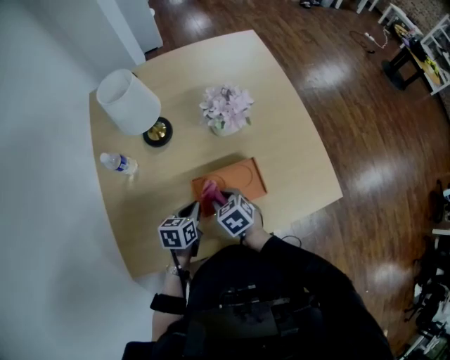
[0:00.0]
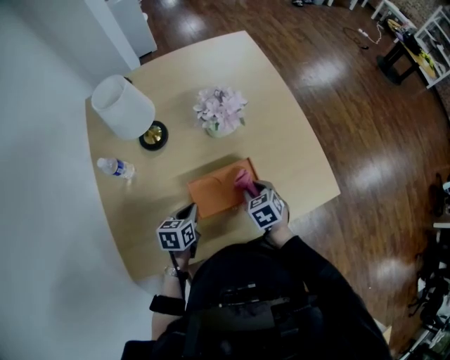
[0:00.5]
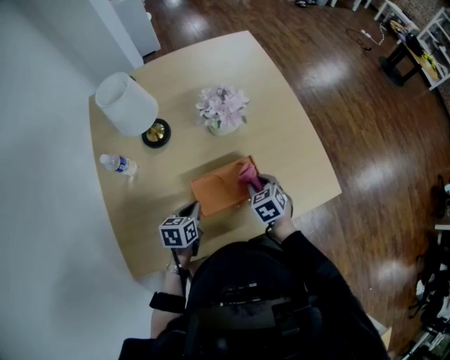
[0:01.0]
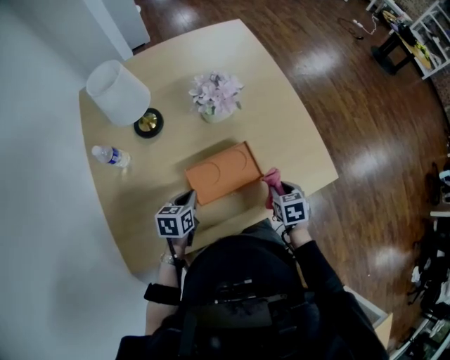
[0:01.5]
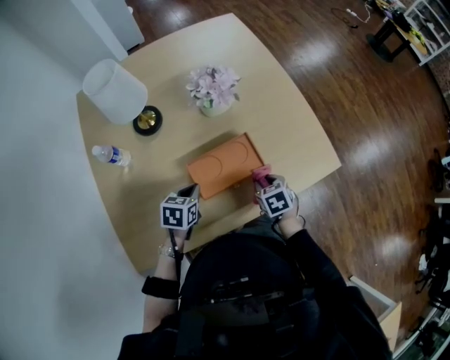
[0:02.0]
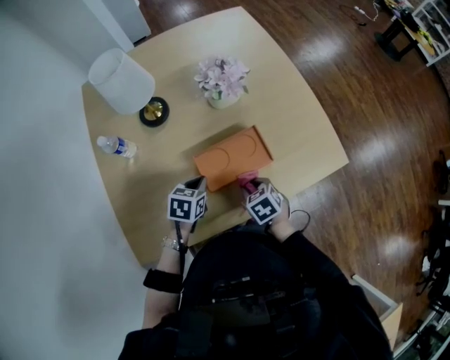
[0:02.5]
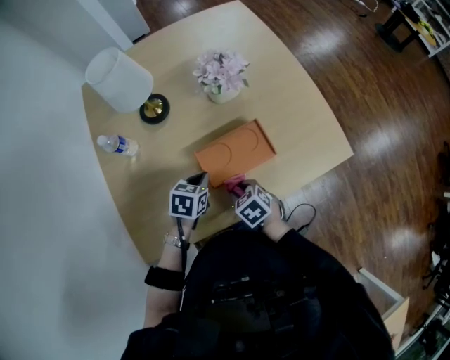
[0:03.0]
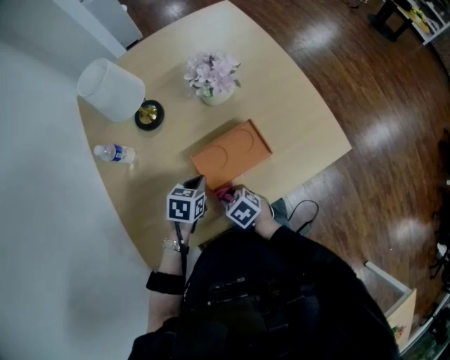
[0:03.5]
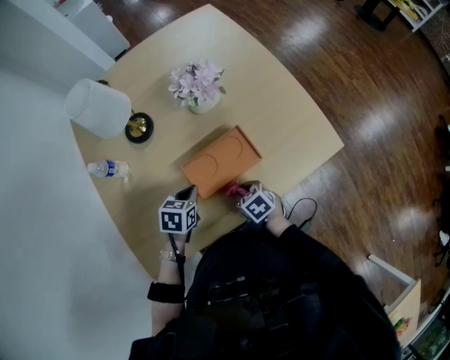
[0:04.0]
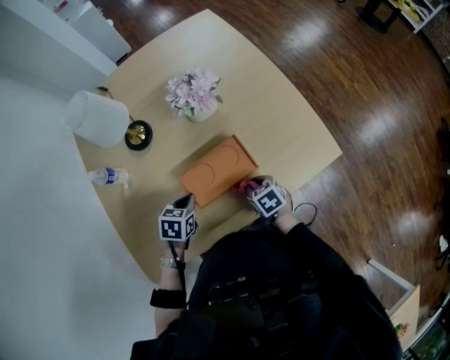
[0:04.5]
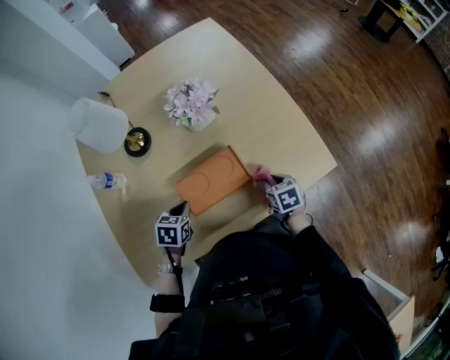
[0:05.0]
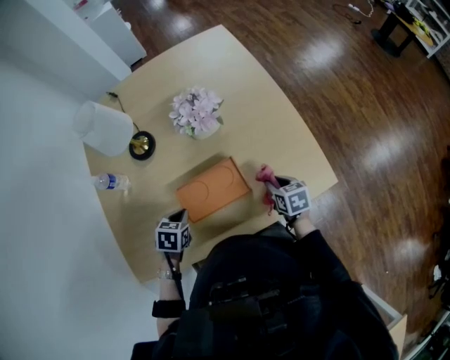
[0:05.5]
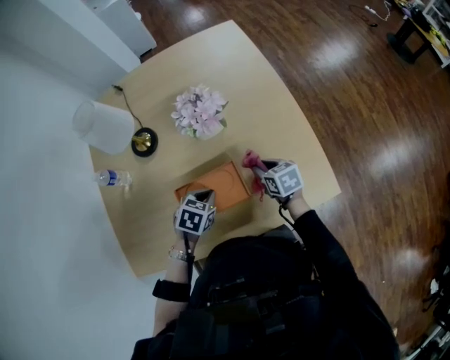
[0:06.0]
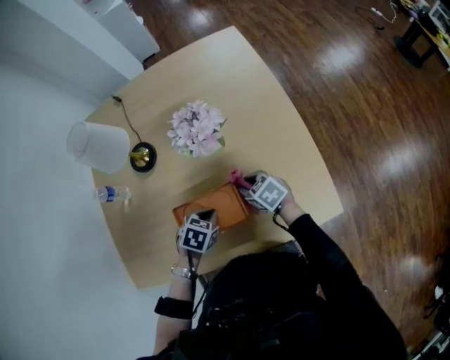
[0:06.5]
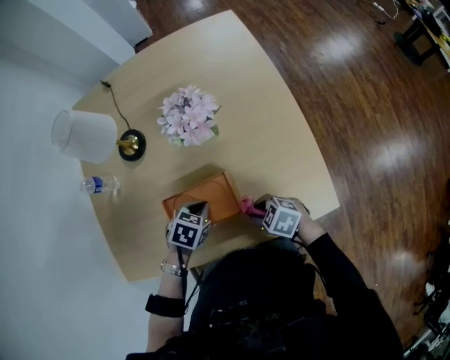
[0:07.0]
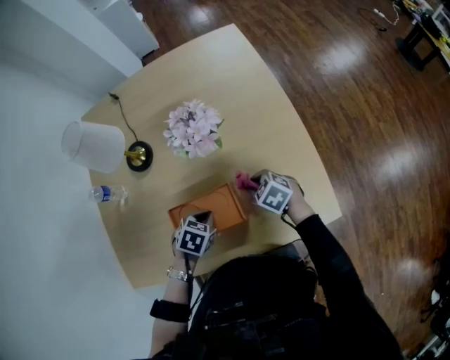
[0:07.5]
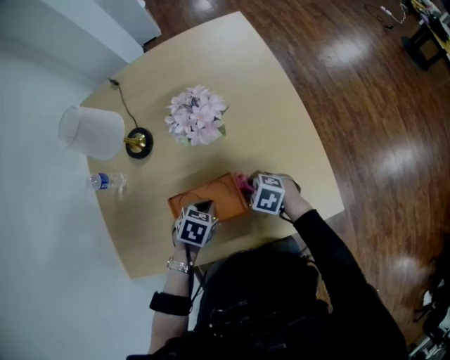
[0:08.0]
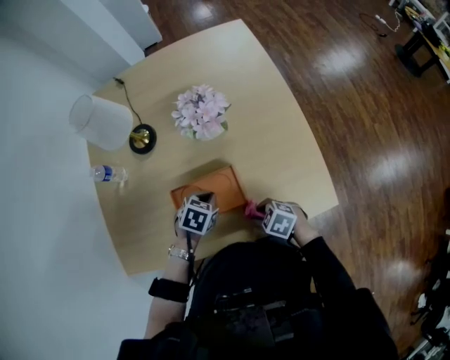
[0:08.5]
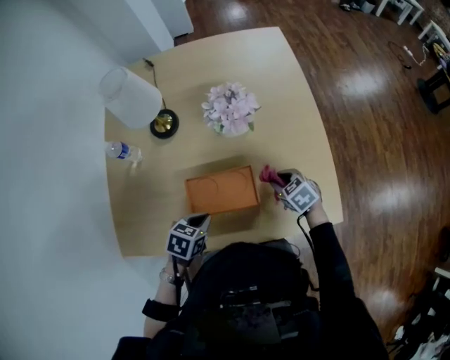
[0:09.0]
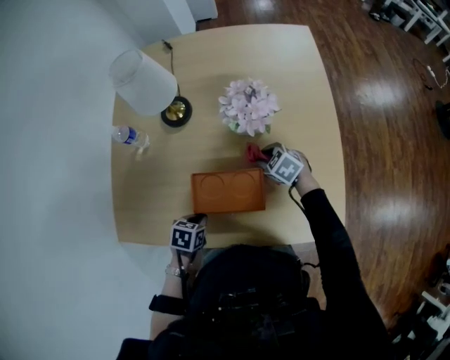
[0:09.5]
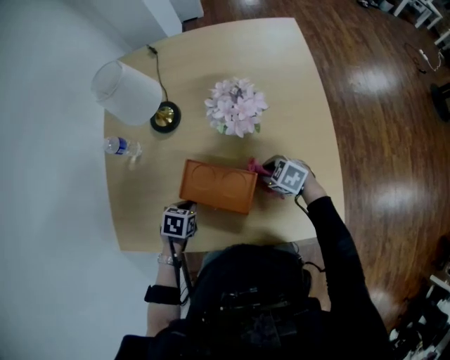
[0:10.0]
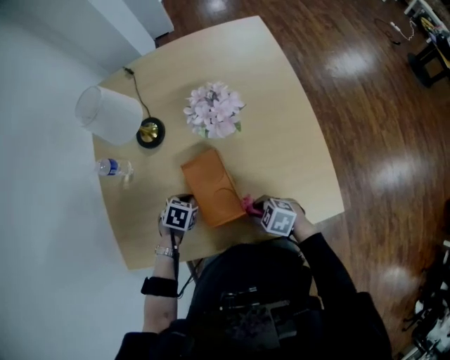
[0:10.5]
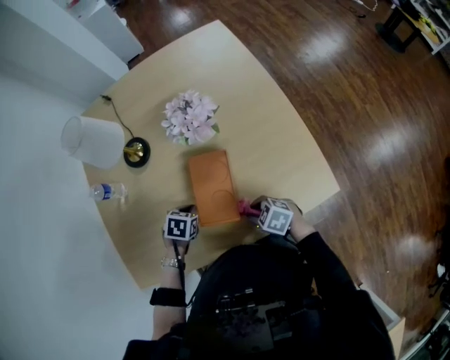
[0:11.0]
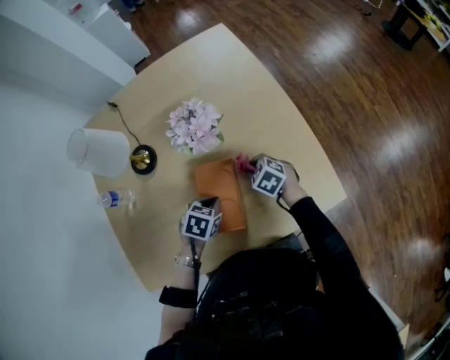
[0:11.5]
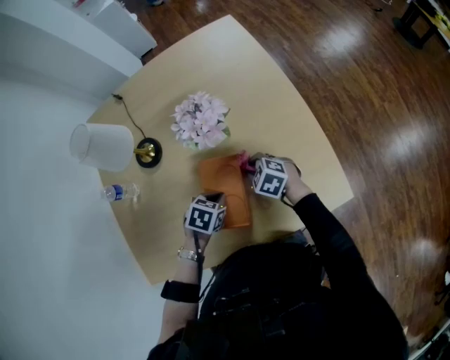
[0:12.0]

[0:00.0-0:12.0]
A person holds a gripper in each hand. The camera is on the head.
0:00.0 to 0:02.0: The right gripper travels to the right by some 15 cm, and turns by some 20 degrees.
0:02.0 to 0:04.0: The right gripper moves to the left, some 10 cm.
0:04.0 to 0:06.0: The right gripper shifts roughly 25 cm forward and to the right; the left gripper shifts some 15 cm to the right and forward.
0:06.0 to 0:08.0: The right gripper twists some 40 degrees counterclockwise, seen from behind.
0:08.0 to 0:10.0: The left gripper ends up some 15 cm from where it was, and rotates roughly 20 degrees.
0:10.0 to 0:12.0: The left gripper changes place by about 15 cm, and swivels about 30 degrees.

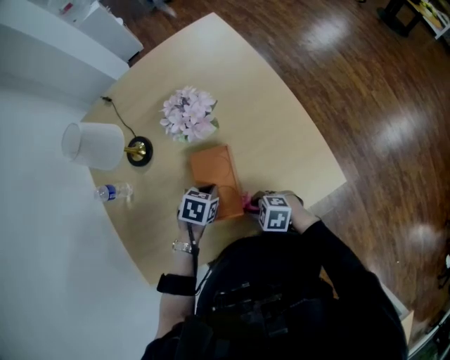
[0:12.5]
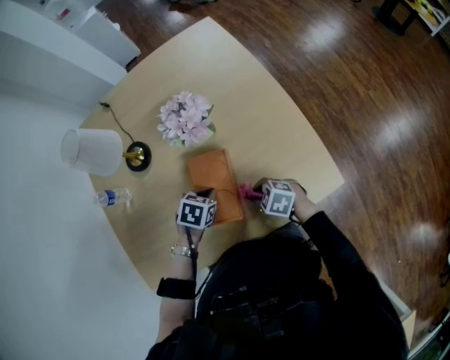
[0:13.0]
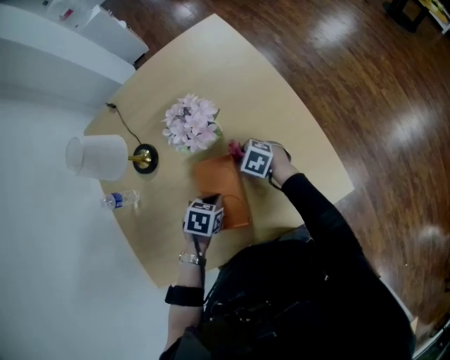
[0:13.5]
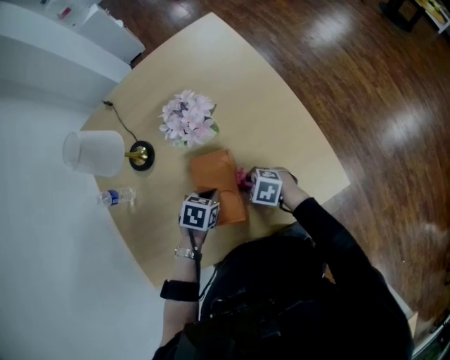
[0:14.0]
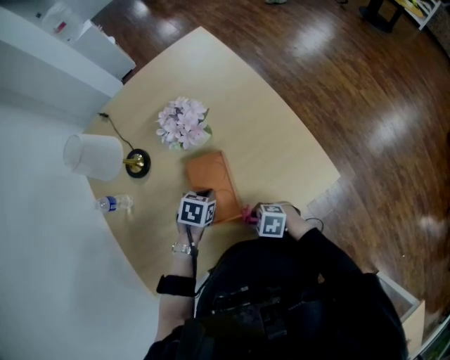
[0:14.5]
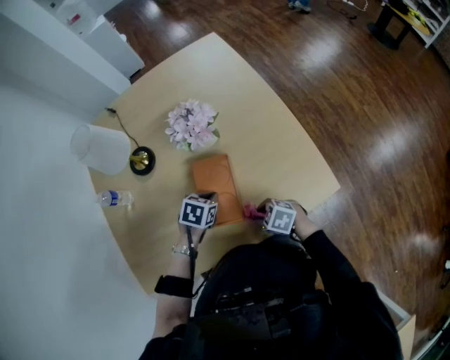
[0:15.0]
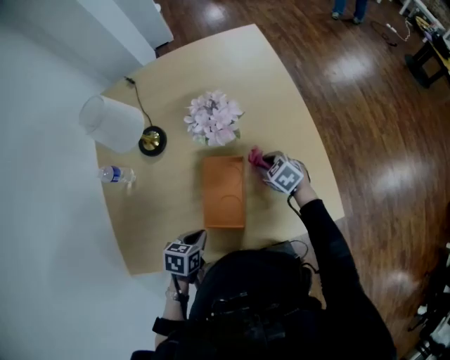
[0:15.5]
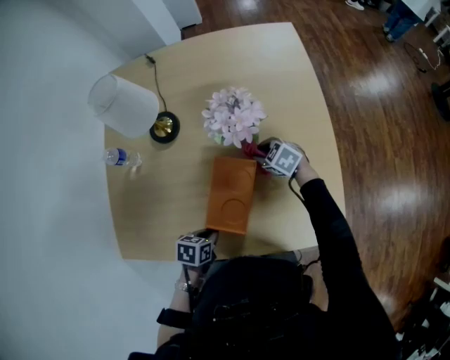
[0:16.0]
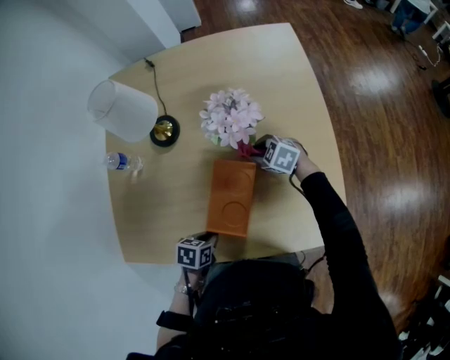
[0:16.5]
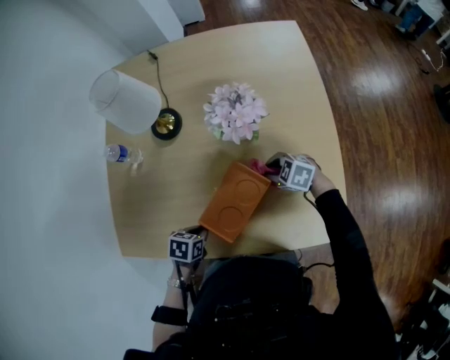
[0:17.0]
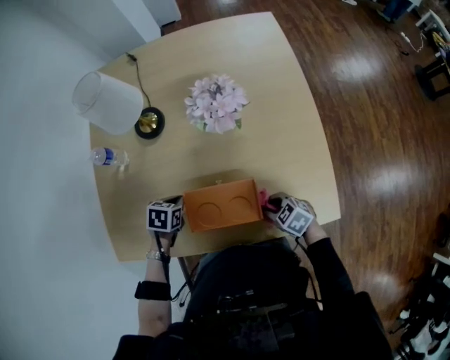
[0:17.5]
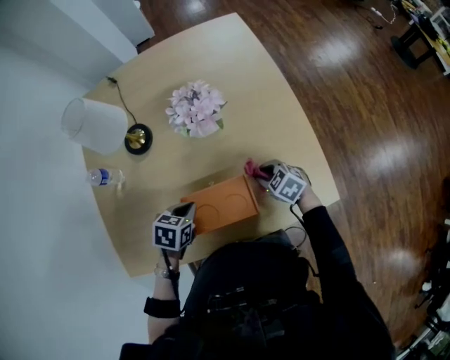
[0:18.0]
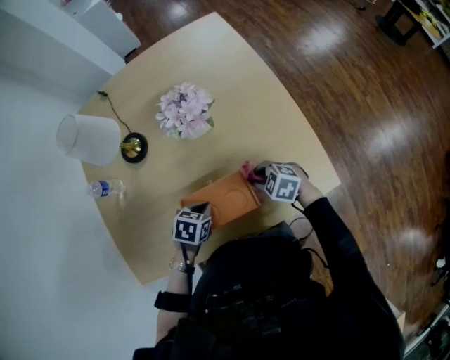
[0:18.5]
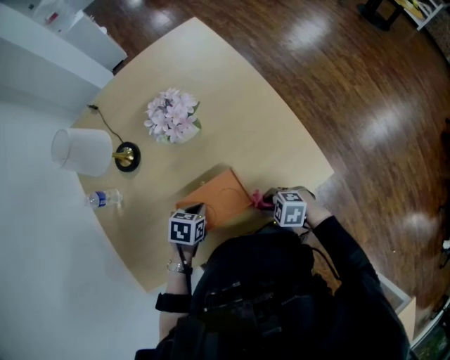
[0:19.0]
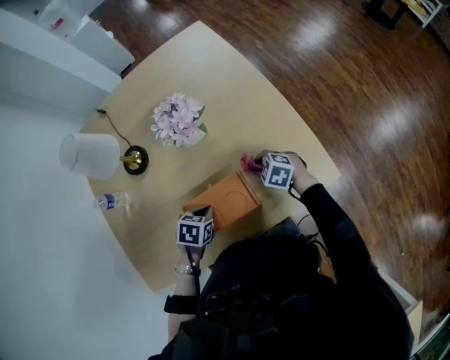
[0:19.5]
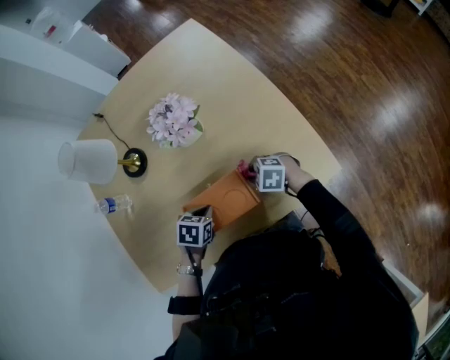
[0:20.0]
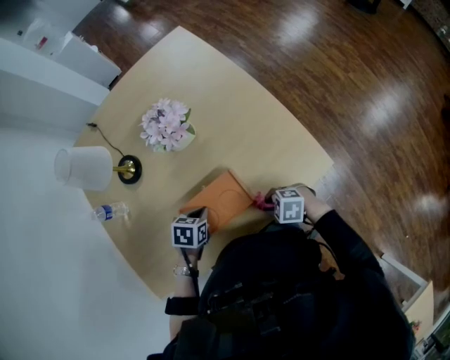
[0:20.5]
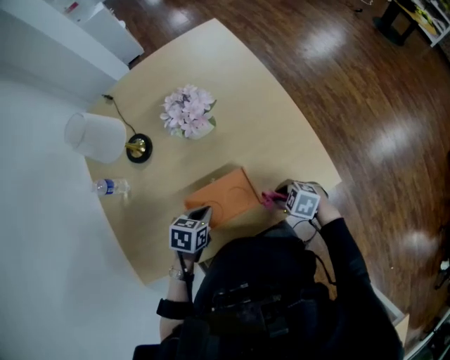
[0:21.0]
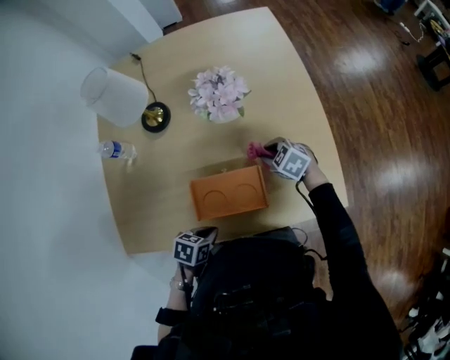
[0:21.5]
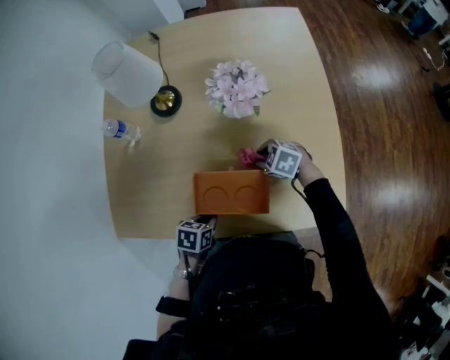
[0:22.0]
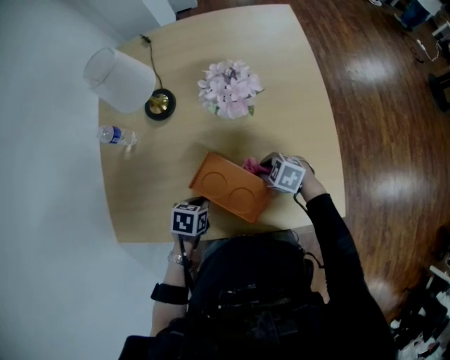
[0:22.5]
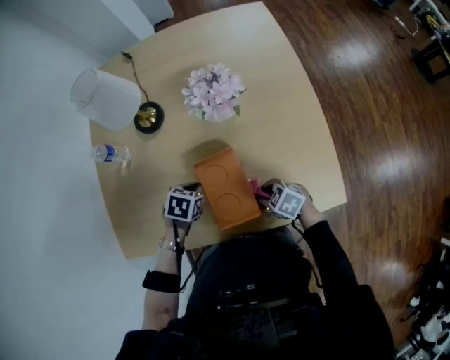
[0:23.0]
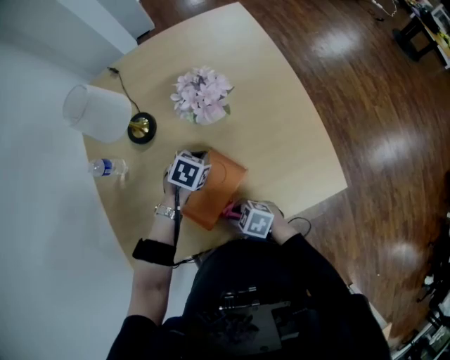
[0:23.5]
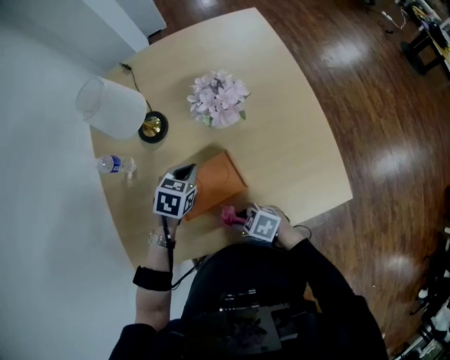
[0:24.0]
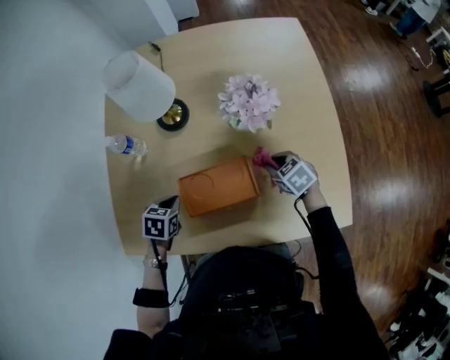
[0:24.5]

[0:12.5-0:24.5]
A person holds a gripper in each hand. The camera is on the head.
0:14.5 to 0:16.5: The left gripper ends up roughly 15 cm from where it was, and swivels about 40 degrees; the right gripper changes place by about 30 cm, and swivels approximately 20 degrees.
0:16.5 to 0:18.5: The right gripper changes place by roughly 20 cm. The left gripper changes its angle by some 30 degrees.
0:18.5 to 0:20.5: The right gripper shifts by some 15 cm.
0:20.5 to 0:22.5: The left gripper turns by approximately 30 degrees; the right gripper moves about 15 cm.
0:22.5 to 0:24.5: The left gripper moves some 10 cm upward and comes back; the right gripper swivels about 20 degrees.

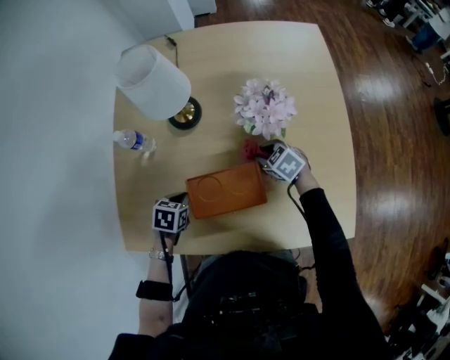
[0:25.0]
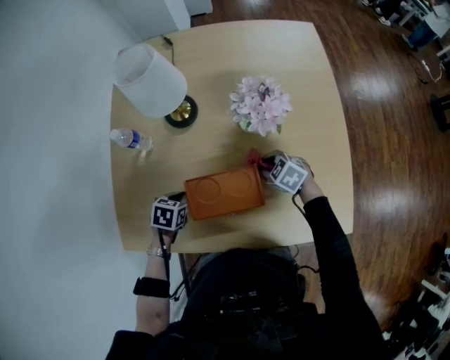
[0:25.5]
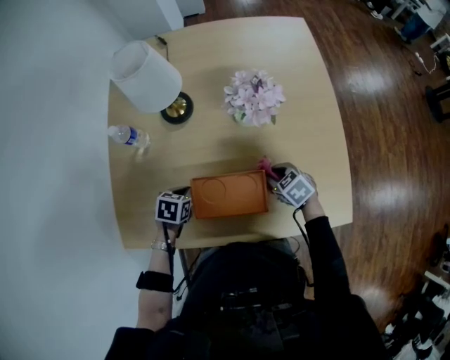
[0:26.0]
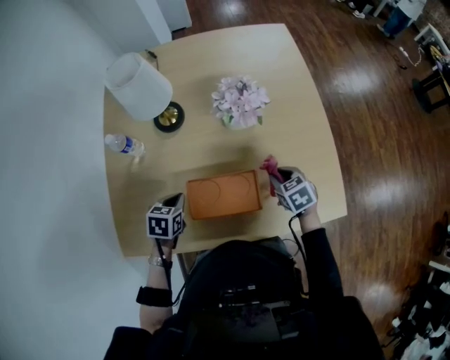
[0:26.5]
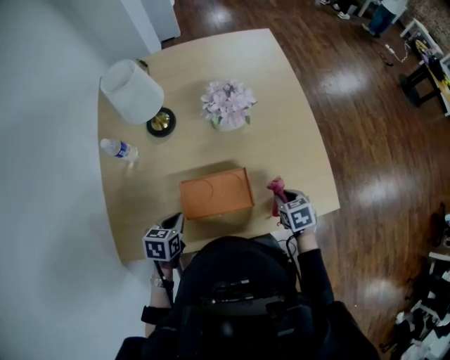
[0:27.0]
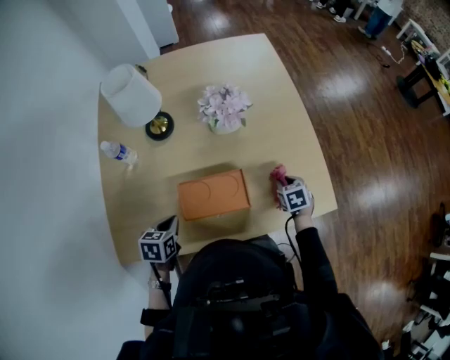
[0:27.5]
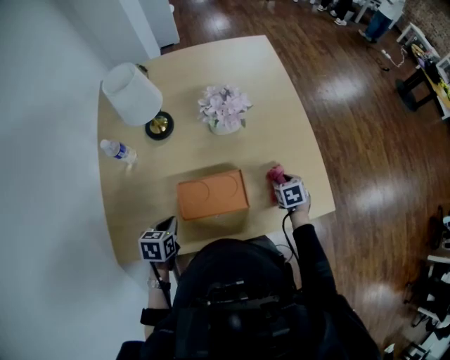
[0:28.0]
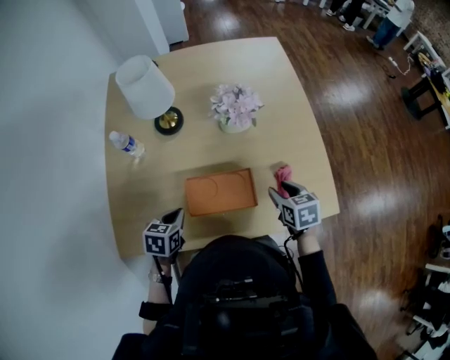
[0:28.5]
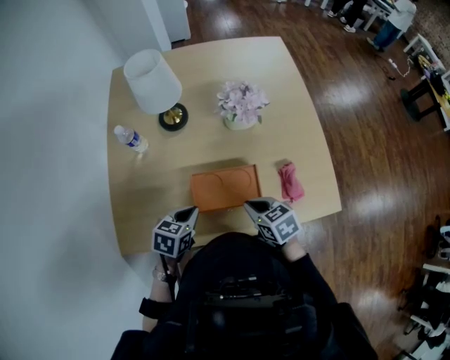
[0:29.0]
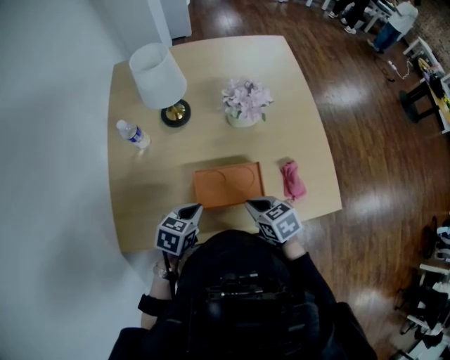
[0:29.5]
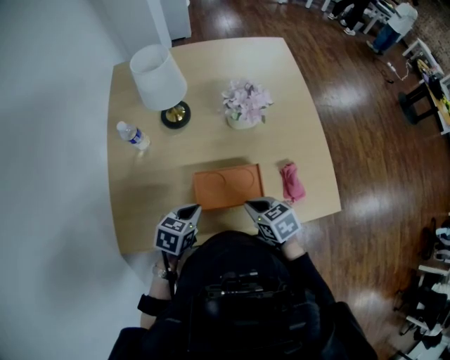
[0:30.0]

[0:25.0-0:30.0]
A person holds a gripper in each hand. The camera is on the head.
0:25.0 to 0:27.5: The left gripper ends up roughly 10 cm from where it was; the right gripper ends up about 25 cm from where it was, and rotates roughly 50 degrees.
0:27.5 to 0:30.0: The right gripper moves to the left, upward and backward, about 25 cm, turns by some 30 degrees, and closes its fingers.
